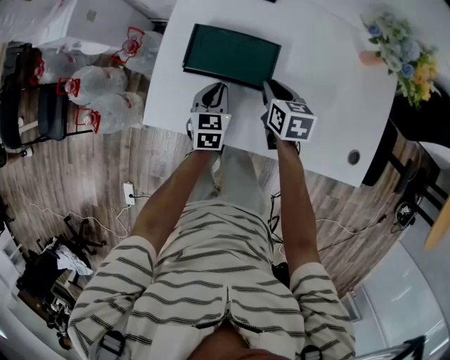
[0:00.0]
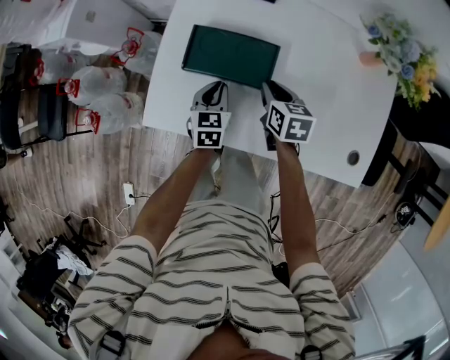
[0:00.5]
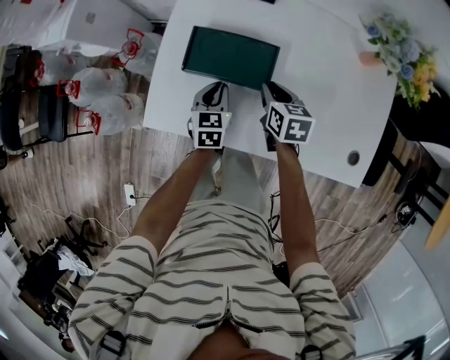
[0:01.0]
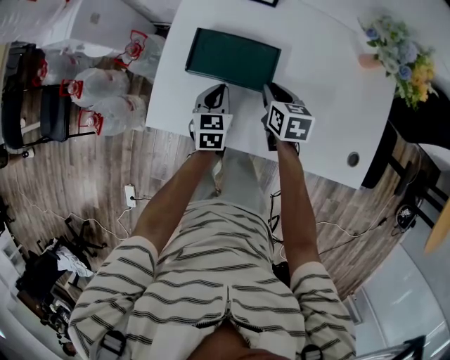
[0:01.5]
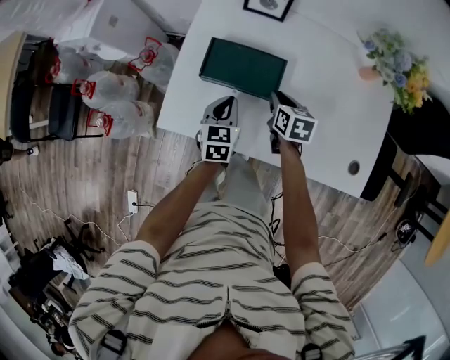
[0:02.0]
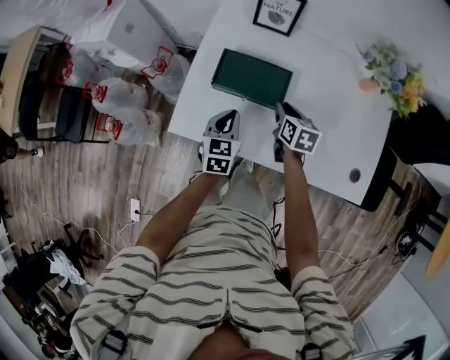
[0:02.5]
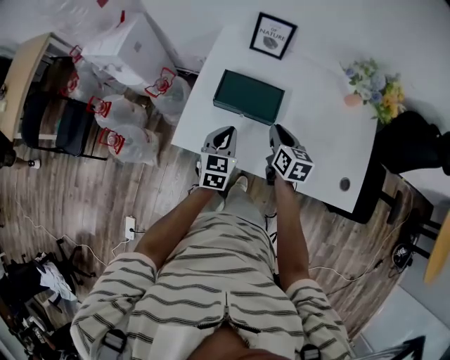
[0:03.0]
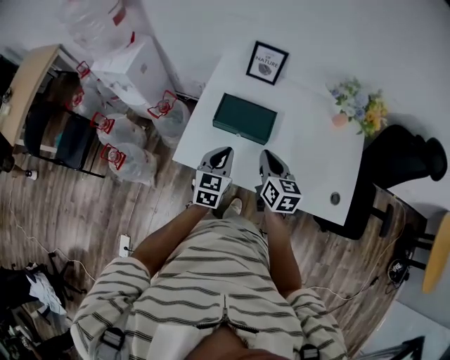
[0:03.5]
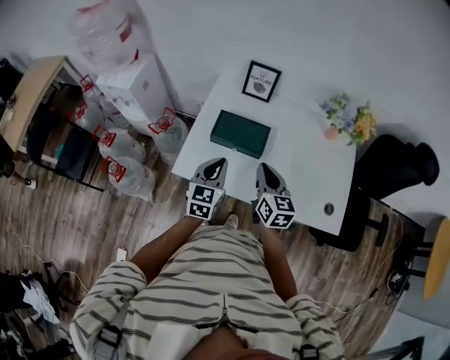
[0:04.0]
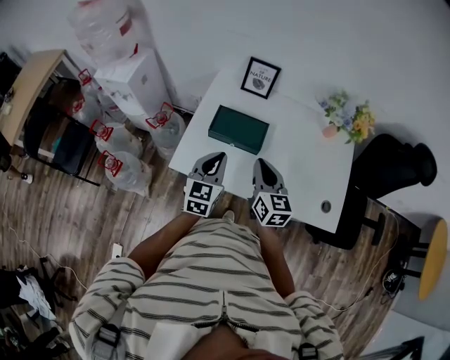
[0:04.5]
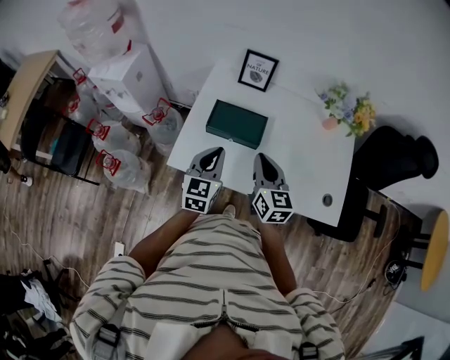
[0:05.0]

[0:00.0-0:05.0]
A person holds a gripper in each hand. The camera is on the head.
0:00.0 to 0:02.5: The left gripper shifts roughly 10 cm upward.
0:02.5 to 0:05.0: The left gripper moves upward, some 15 cm, while the right gripper goes some 25 cm upward and backward, swivels roughly 30 degrees, and closes its fingers.

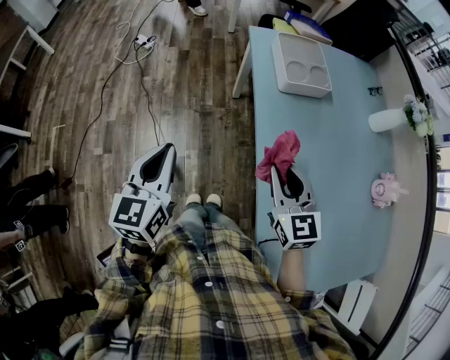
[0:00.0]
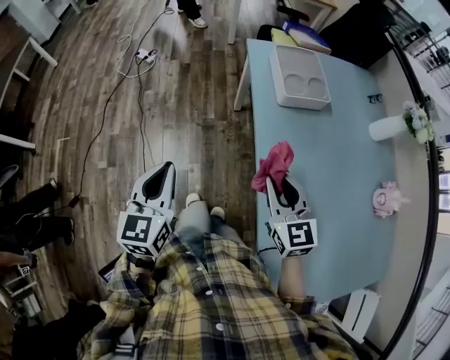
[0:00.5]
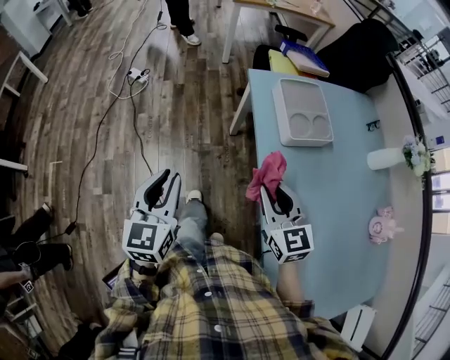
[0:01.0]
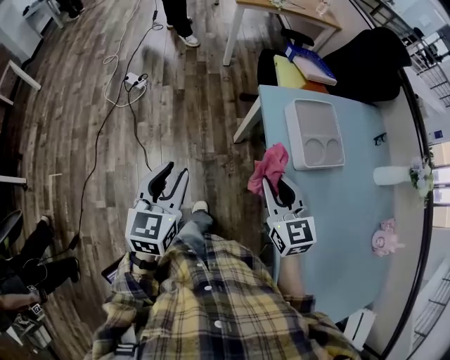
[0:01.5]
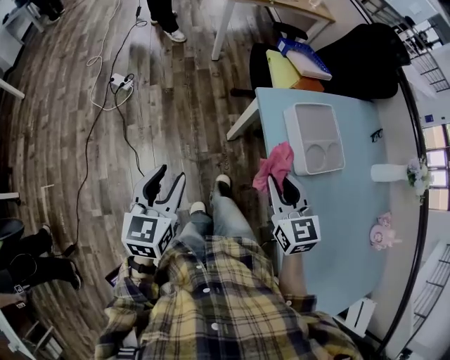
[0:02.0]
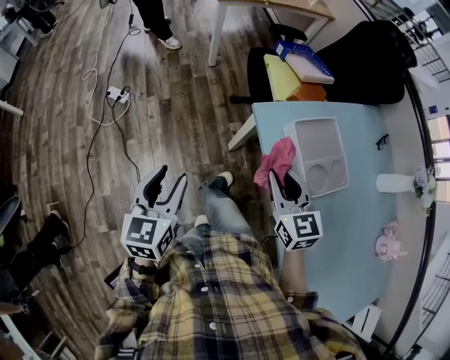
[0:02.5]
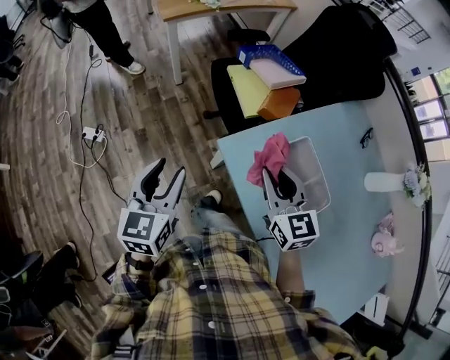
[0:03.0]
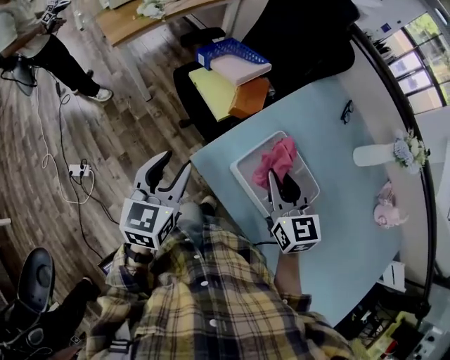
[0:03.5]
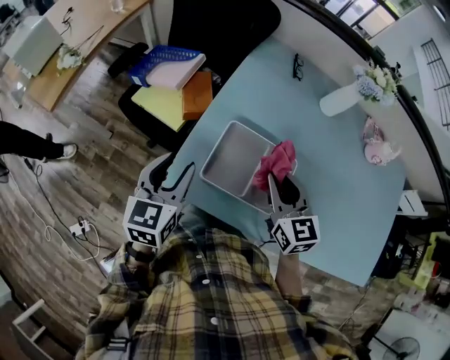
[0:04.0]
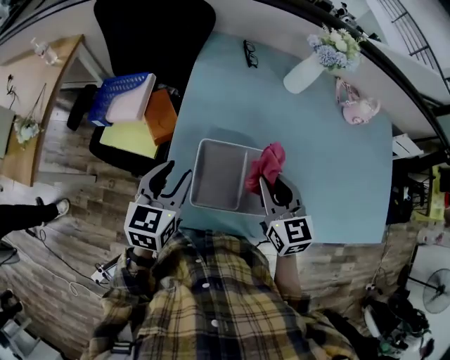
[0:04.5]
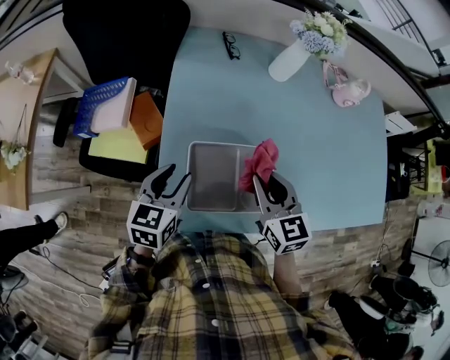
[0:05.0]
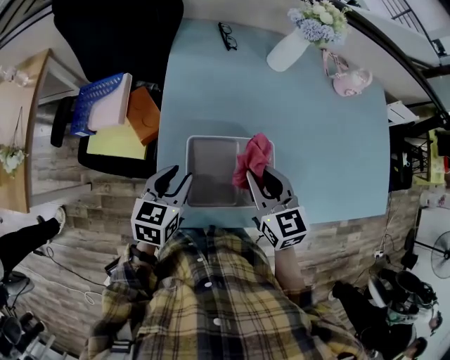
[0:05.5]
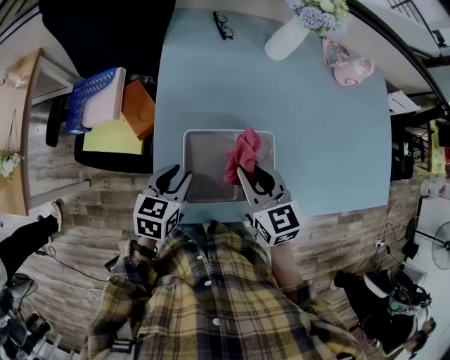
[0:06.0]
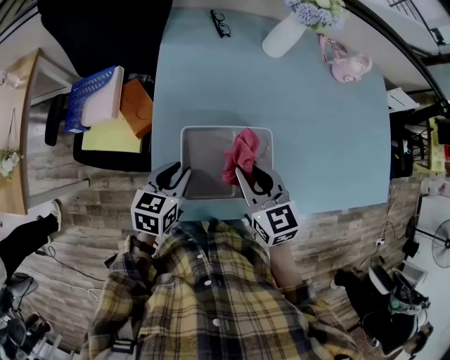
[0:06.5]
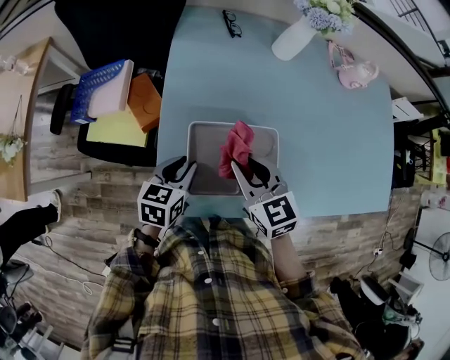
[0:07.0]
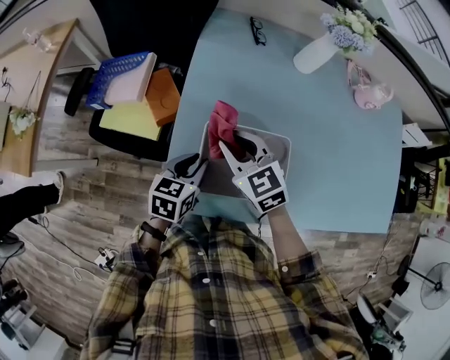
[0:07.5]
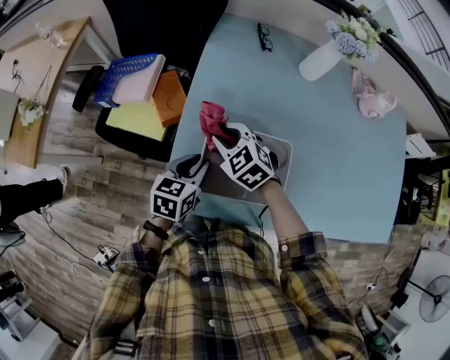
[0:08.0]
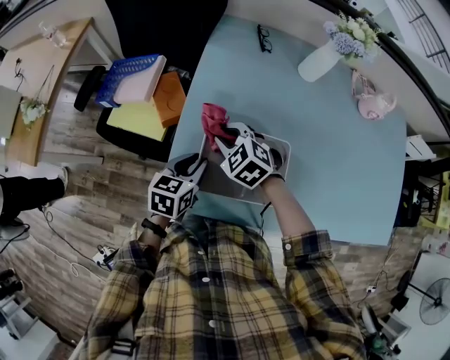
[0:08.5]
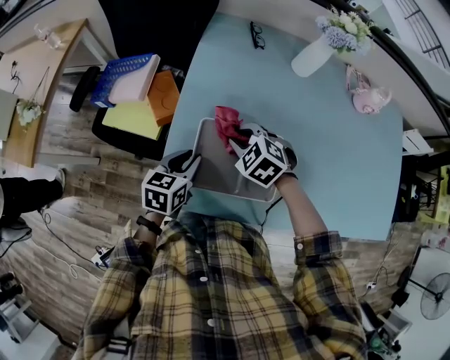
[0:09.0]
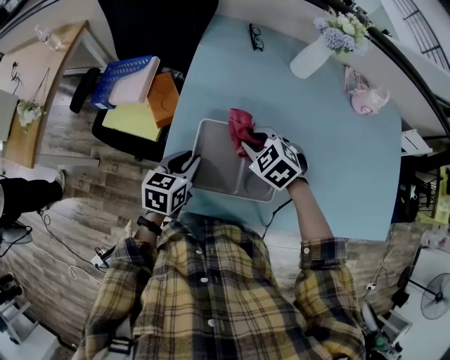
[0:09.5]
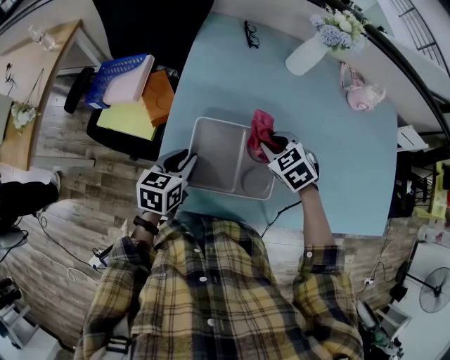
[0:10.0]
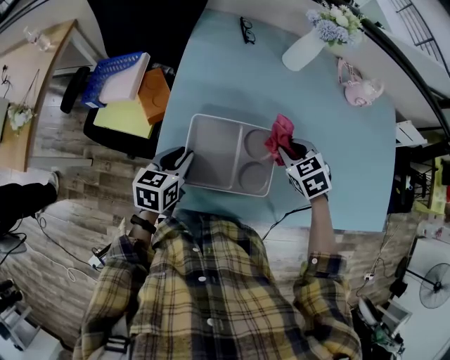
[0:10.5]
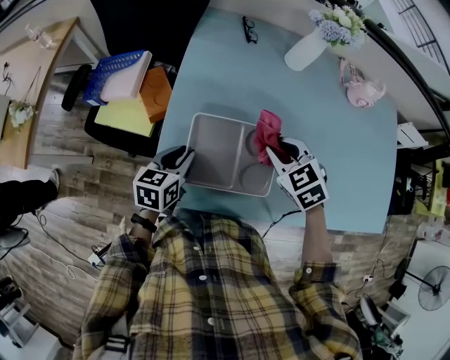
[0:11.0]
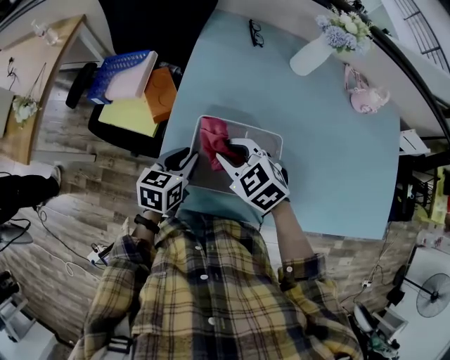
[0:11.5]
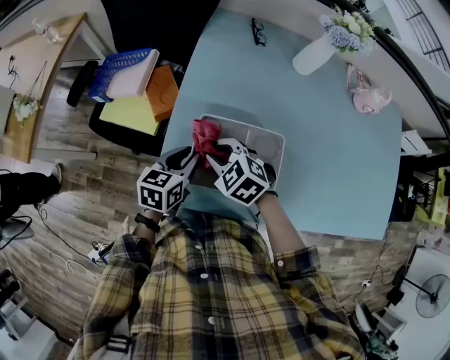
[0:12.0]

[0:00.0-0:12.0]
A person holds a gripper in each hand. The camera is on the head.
0:00.0 to 0:02.0: The grippers both shift forward by roughly 30 cm. The left gripper opens its fingers.
0:02.0 to 0:04.0: The right gripper shifts by some 30 cm, and turns by some 50 degrees. Meanwhile the left gripper ends up approximately 50 cm from where it was, and rotates approximately 60 degrees.
0:04.0 to 0:06.0: The left gripper shifts some 10 cm downward, and rotates roughly 40 degrees.
0:06.0 to 0:08.0: The right gripper shifts approximately 15 cm to the left, downward and forward, and swivels about 40 degrees.
0:08.0 to 0:10.0: The right gripper travels to the right by some 15 cm.
0:10.0 to 0:12.0: The right gripper goes some 15 cm to the left.

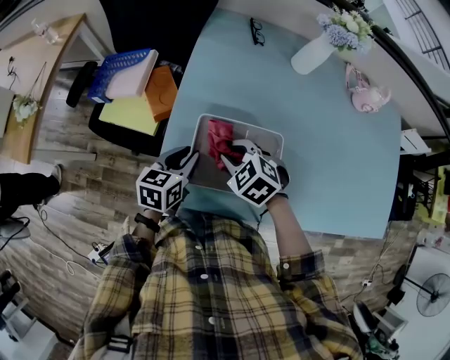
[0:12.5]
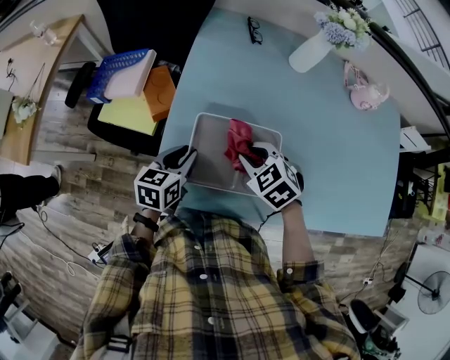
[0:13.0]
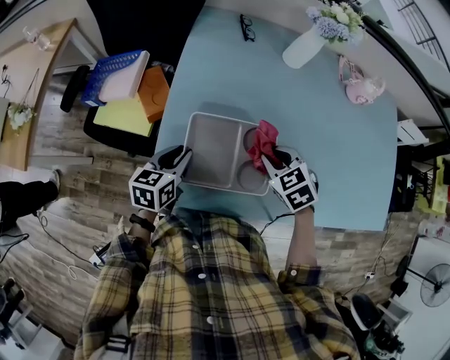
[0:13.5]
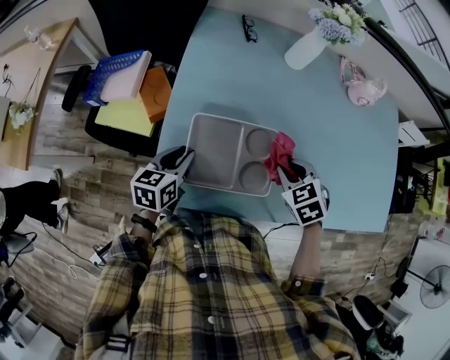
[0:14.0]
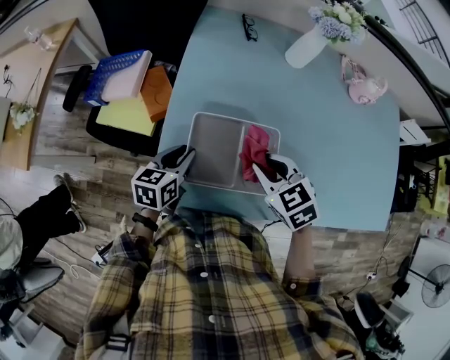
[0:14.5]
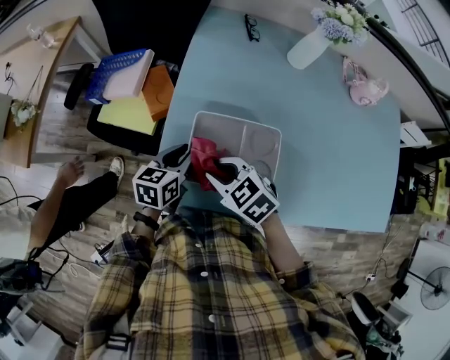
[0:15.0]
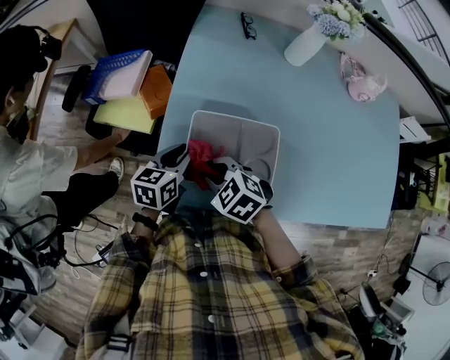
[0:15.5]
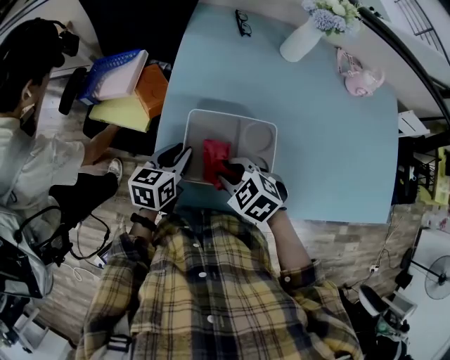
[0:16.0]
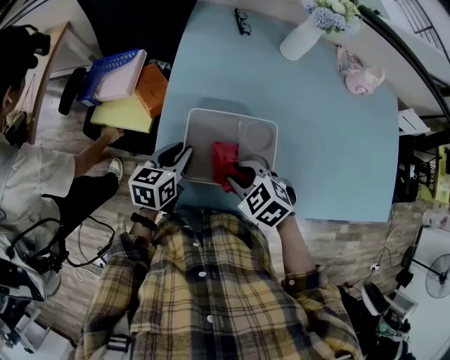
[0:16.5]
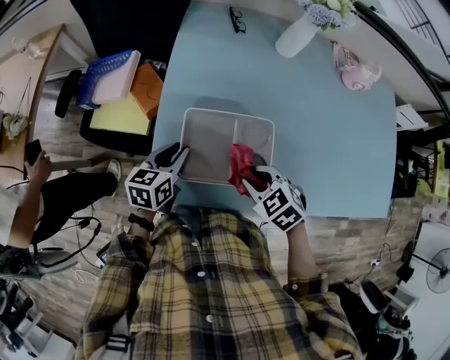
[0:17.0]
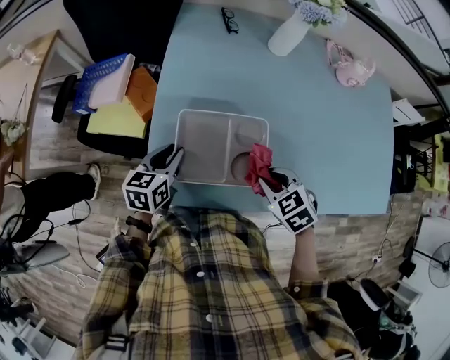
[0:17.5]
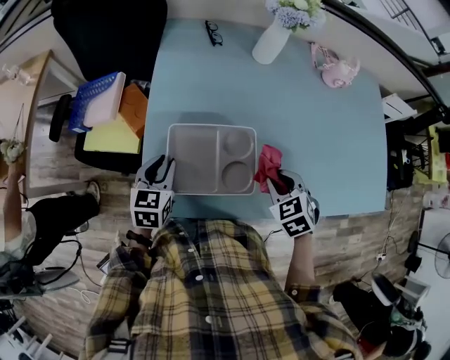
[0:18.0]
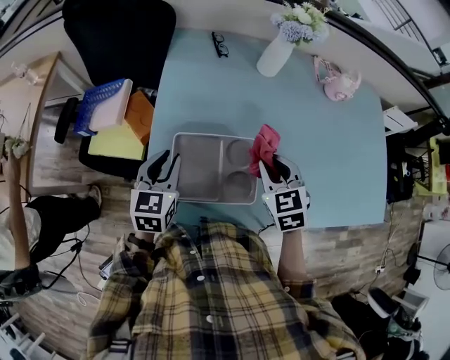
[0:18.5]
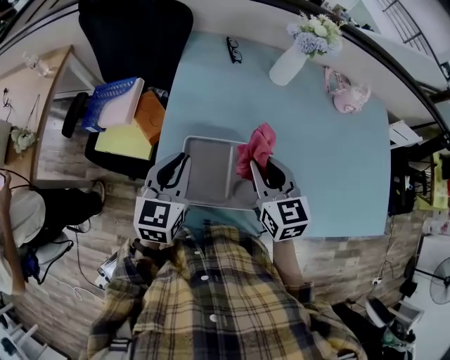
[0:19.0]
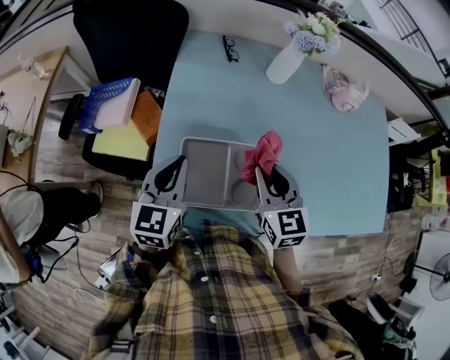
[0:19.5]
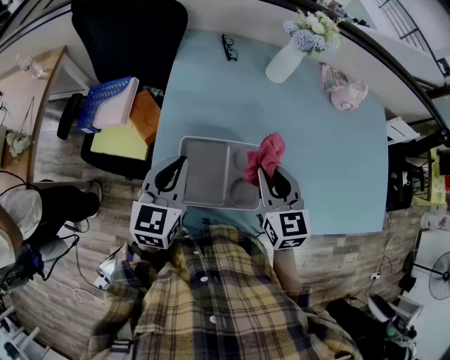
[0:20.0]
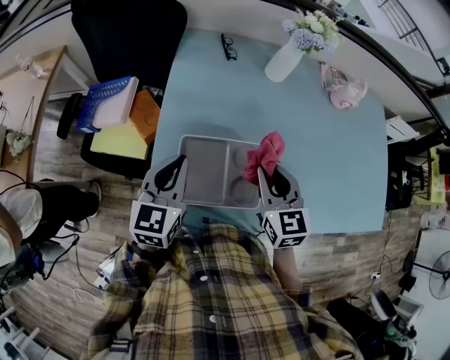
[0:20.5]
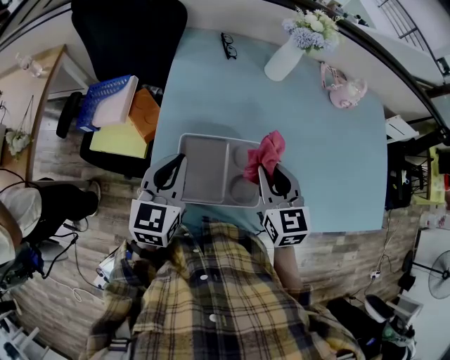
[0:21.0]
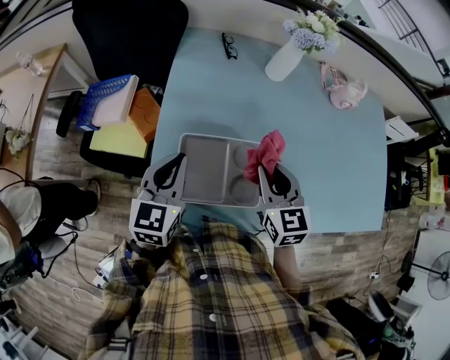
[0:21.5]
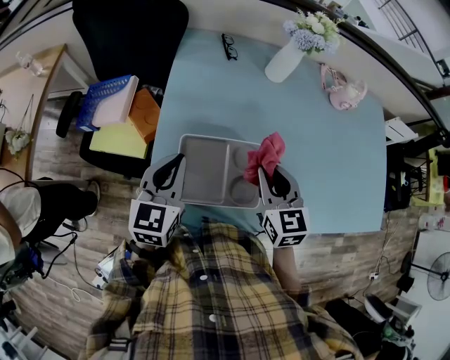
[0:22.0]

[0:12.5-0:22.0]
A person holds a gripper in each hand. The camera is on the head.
0:12.5 to 0:14.5: The right gripper travels to the right and upward by some 10 cm, and rotates approximately 20 degrees.
0:14.5 to 0:16.5: The right gripper moves to the left and downward, roughly 10 cm.
0:16.5 to 0:18.0: The right gripper travels to the right by roughly 15 cm, and changes its angle by about 30 degrees.
0:18.0 to 0:20.0: The left gripper travels upward by some 10 cm, and closes its fingers; the right gripper moves upward, to the left and forward, roughly 15 cm, and tilts its fingers approximately 30 degrees upward.
0:20.0 to 0:22.0: The two grippers keep their place.
